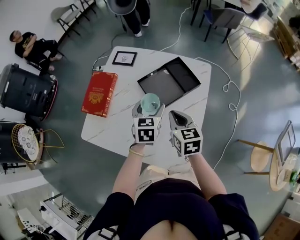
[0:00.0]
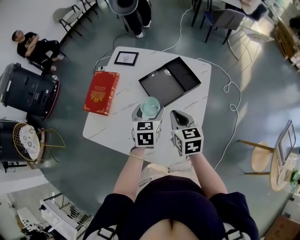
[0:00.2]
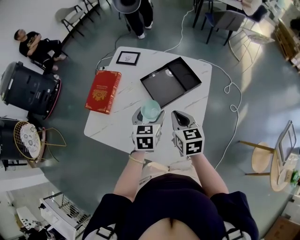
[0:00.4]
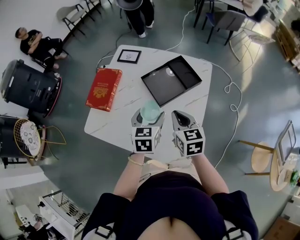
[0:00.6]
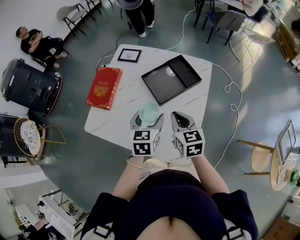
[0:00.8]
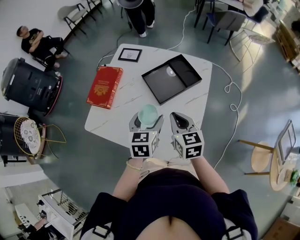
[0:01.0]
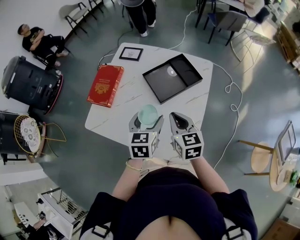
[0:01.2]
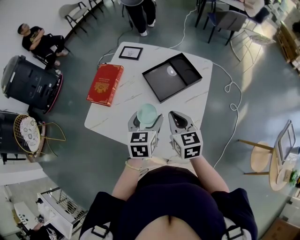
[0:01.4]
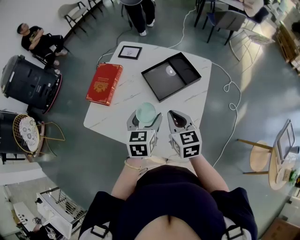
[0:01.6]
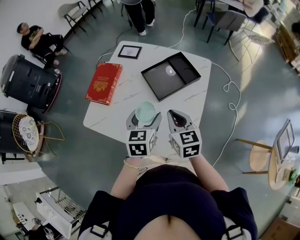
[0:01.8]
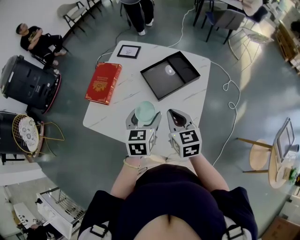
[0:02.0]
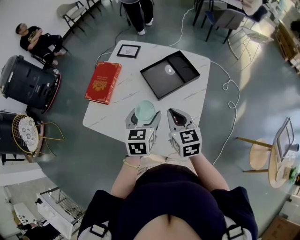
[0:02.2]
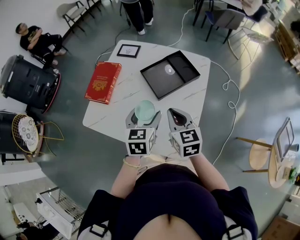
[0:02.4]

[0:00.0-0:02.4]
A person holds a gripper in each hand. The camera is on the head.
0.0 to 1.2 s: The right gripper travels backward by some 5 cm, while the left gripper heads backward, covering some 10 cm.
1.2 to 2.4 s: Both grippers stay about where they are.

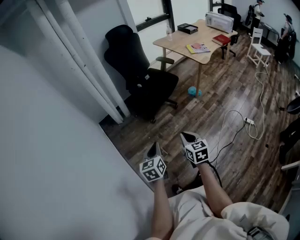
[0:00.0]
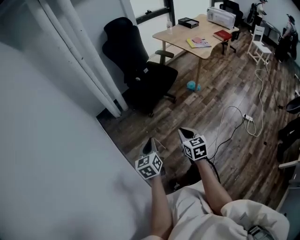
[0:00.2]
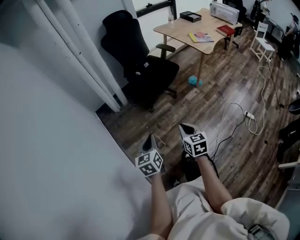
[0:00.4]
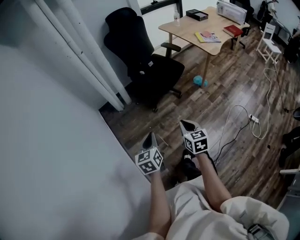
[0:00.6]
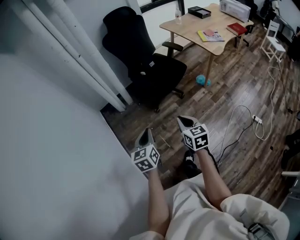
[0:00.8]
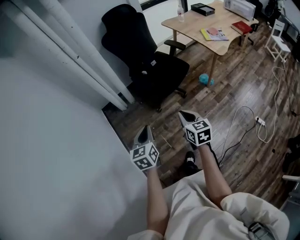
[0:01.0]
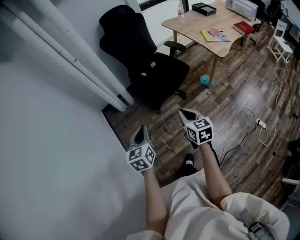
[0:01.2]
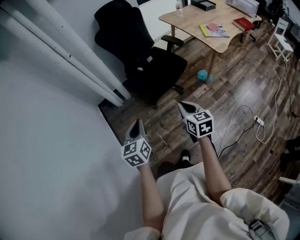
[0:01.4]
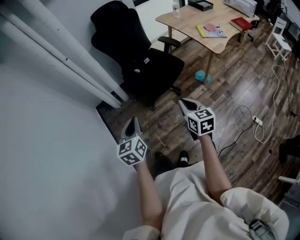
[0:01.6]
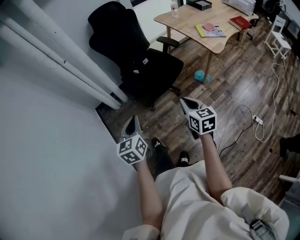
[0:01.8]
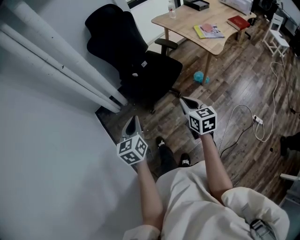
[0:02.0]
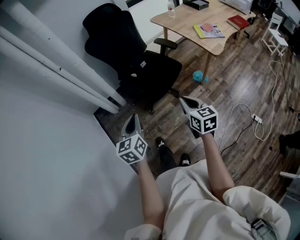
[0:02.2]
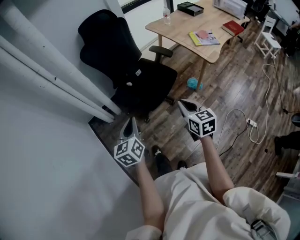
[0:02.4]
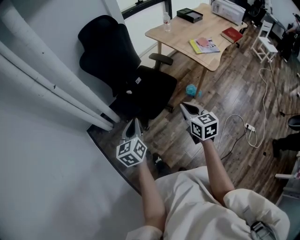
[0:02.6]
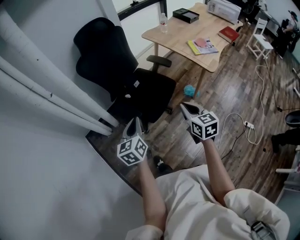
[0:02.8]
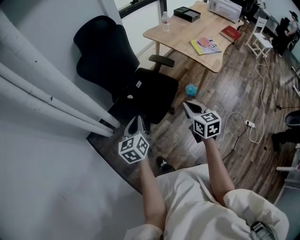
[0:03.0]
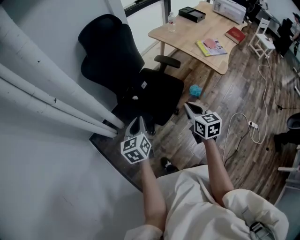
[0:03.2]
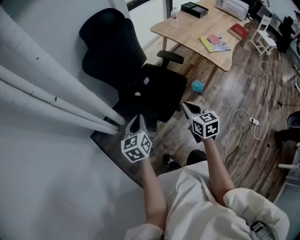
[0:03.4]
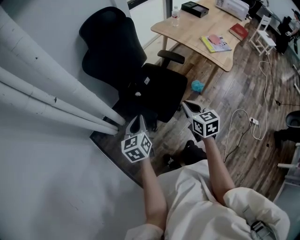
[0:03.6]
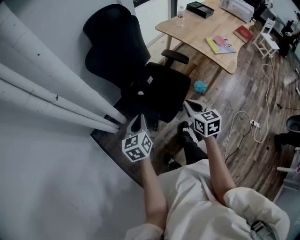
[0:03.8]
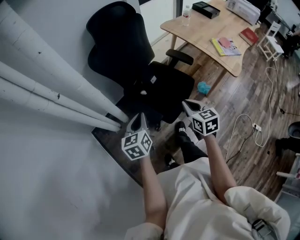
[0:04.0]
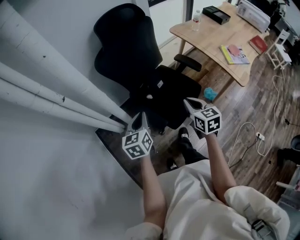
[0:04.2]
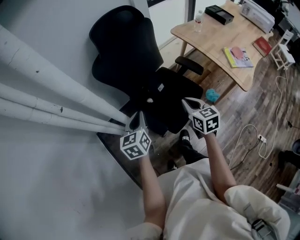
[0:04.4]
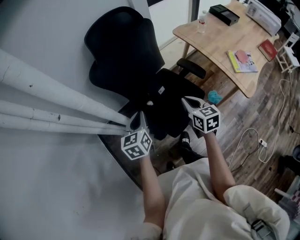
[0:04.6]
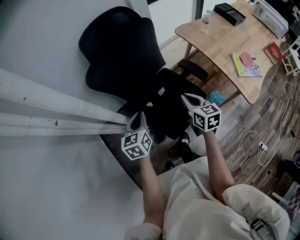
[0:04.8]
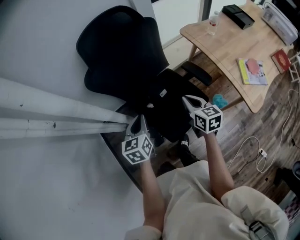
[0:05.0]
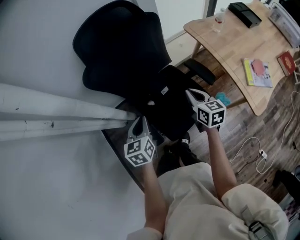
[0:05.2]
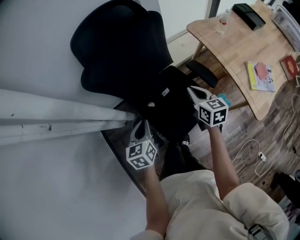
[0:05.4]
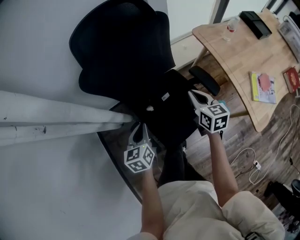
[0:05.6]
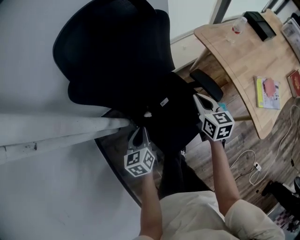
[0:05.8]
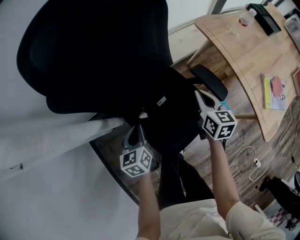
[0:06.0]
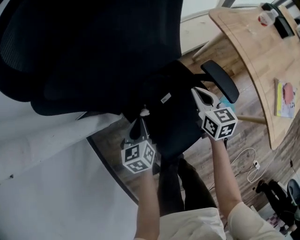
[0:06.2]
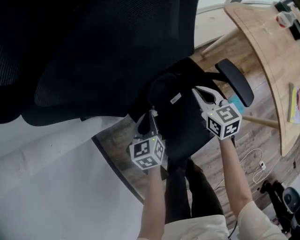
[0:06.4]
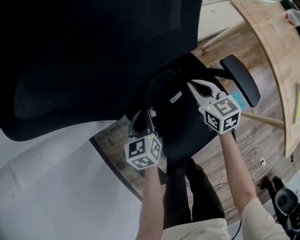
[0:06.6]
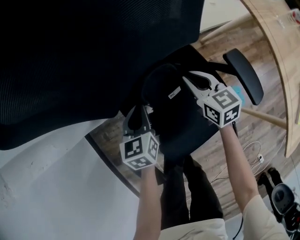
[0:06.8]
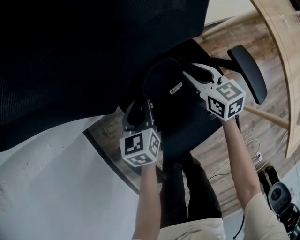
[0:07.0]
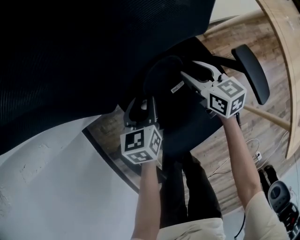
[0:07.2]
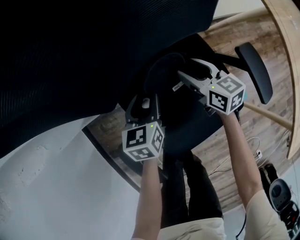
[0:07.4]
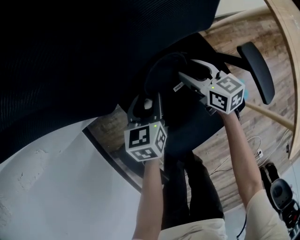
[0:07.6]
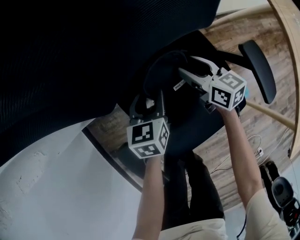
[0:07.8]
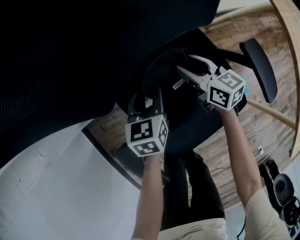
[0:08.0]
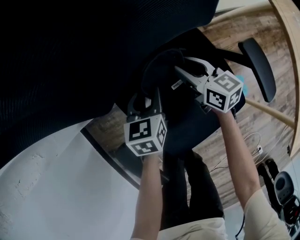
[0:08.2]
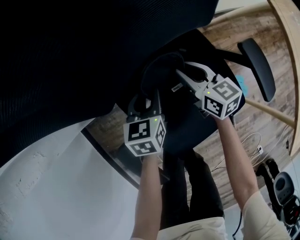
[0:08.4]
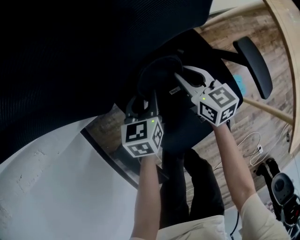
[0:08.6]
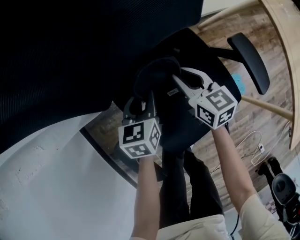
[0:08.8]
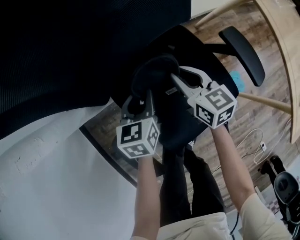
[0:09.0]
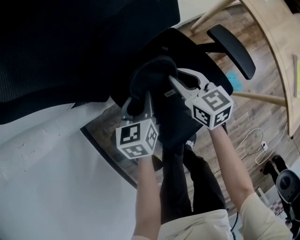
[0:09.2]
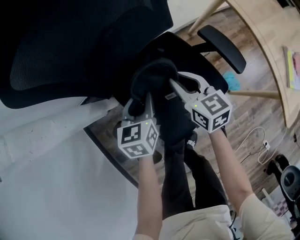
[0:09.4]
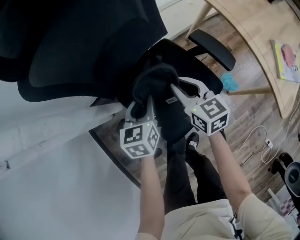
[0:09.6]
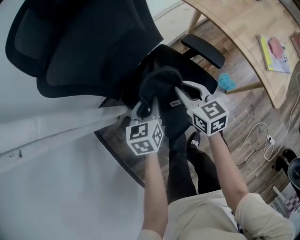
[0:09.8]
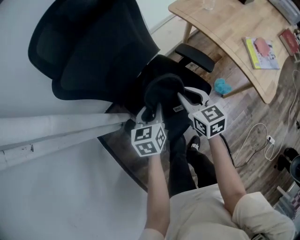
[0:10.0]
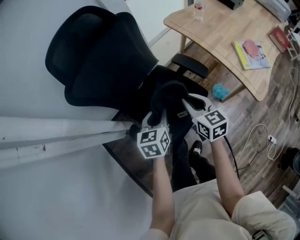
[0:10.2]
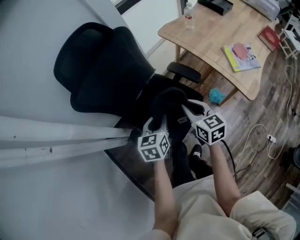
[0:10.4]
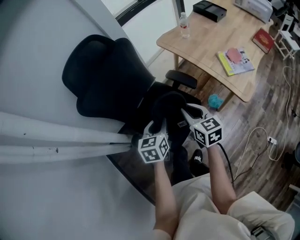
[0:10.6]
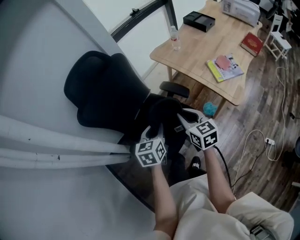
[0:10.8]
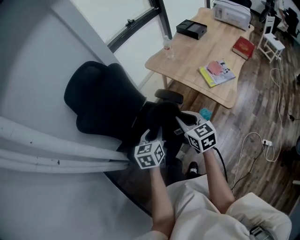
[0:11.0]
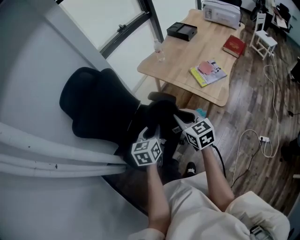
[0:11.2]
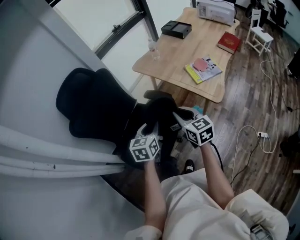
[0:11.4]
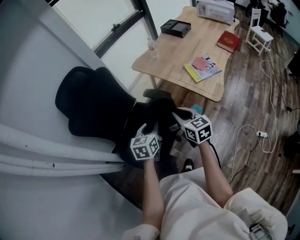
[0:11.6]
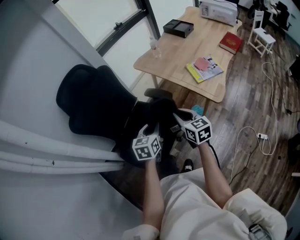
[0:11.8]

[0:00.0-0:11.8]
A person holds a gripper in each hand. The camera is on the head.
0.0 to 1.4 s: The left gripper moves forward, about 25 cm; the right gripper goes some 30 cm forward and to the right.
1.4 to 3.0 s: Both grippers travel together forward, about 25 cm.
3.0 to 4.4 s: Both grippers move forward and to the left, roughly 25 cm.
4.4 to 6.0 s: The right gripper moves forward, downward and to the right, some 35 cm. The left gripper is displaced downward and forward by roughly 30 cm.
6.0 to 7.4 s: The left gripper heads downward and forward, covering roughly 20 cm, and opens, while the right gripper heads downward, to the left and forward, covering roughly 30 cm, swivels roughly 30 degrees, and opens.
7.4 to 8.8 s: The right gripper closes its fingers.
8.8 to 10.4 s: The grippers both shift upward, backward and to the right by roughly 50 cm. The right gripper changes its angle by about 20 degrees; the left gripper rotates roughly 20 degrees.
10.4 to 11.8 s: The right gripper heads to the right, backward and upward, covering about 15 cm. The left gripper is displaced to the right, upward and backward by roughly 15 cm.

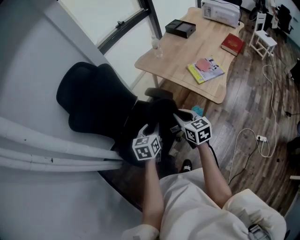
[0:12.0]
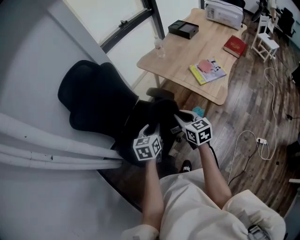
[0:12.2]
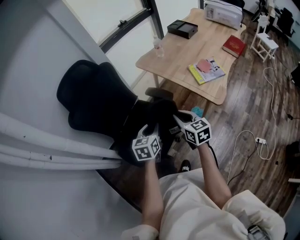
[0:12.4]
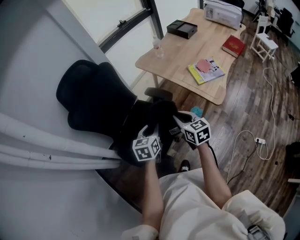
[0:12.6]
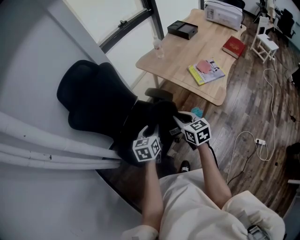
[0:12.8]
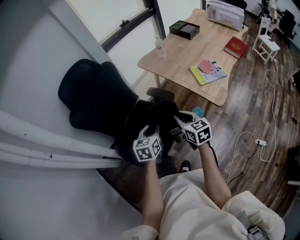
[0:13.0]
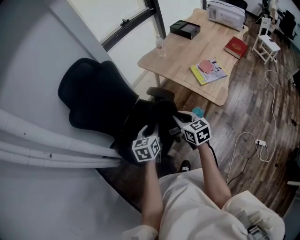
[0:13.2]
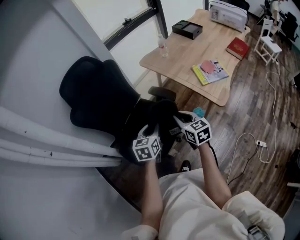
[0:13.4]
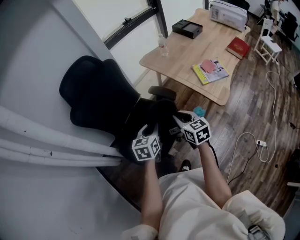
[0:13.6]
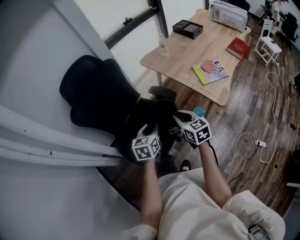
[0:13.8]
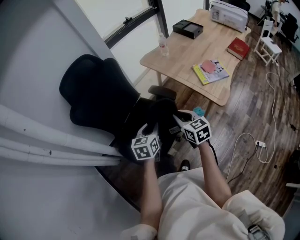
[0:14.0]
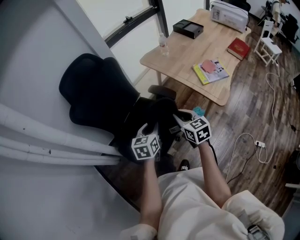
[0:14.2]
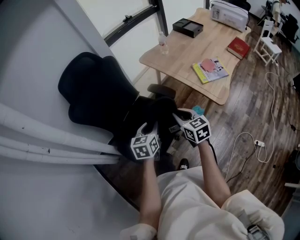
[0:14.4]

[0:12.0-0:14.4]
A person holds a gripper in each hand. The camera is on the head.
12.0 to 13.2 s: The grippers make only small movements.
13.2 to 14.4 s: The two grippers keep their place.

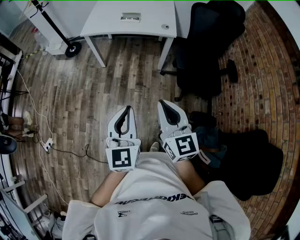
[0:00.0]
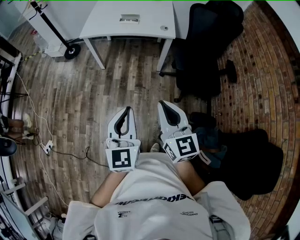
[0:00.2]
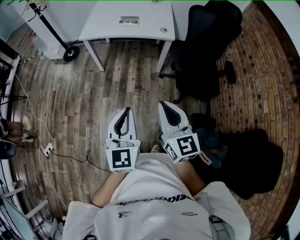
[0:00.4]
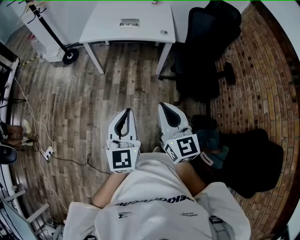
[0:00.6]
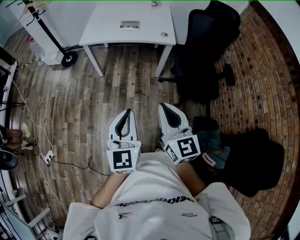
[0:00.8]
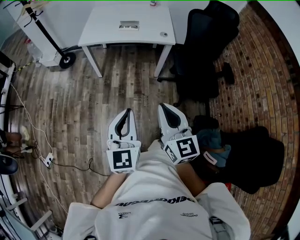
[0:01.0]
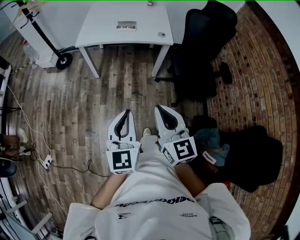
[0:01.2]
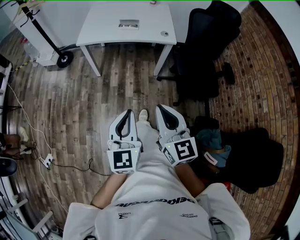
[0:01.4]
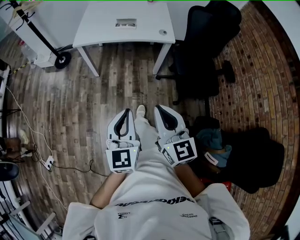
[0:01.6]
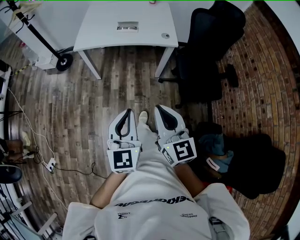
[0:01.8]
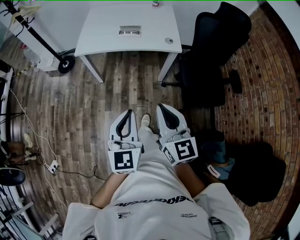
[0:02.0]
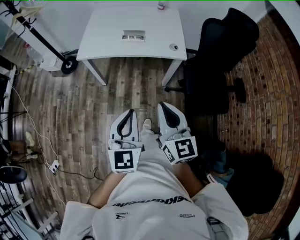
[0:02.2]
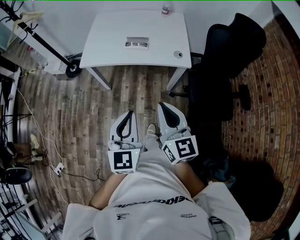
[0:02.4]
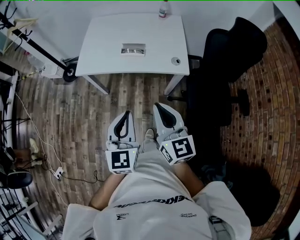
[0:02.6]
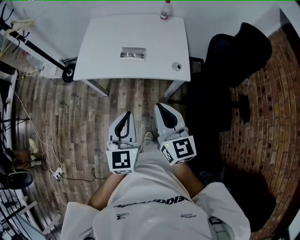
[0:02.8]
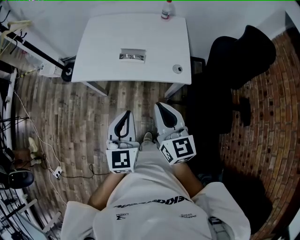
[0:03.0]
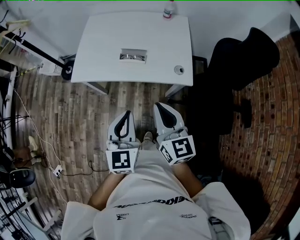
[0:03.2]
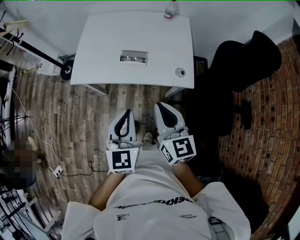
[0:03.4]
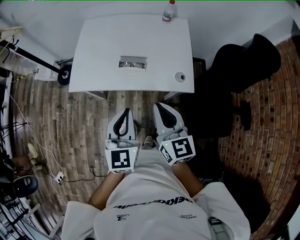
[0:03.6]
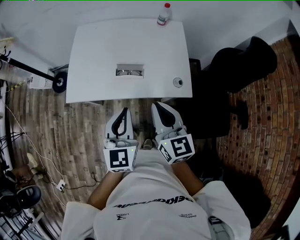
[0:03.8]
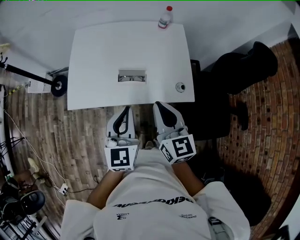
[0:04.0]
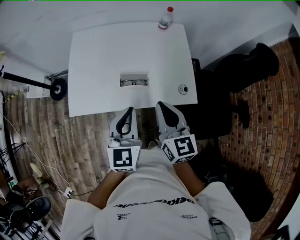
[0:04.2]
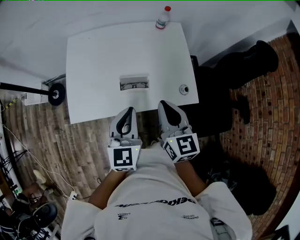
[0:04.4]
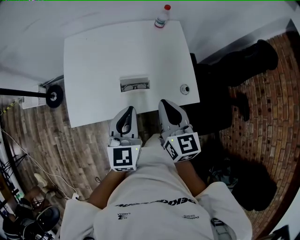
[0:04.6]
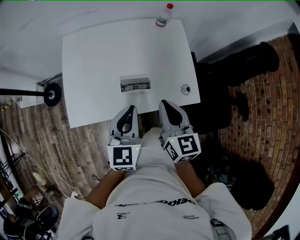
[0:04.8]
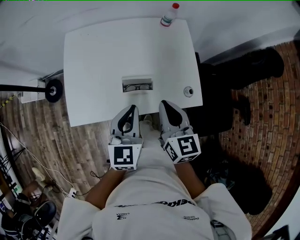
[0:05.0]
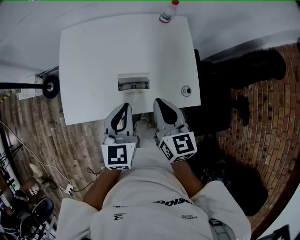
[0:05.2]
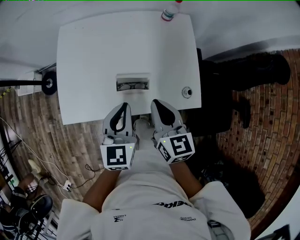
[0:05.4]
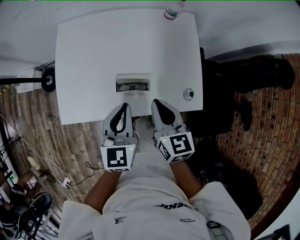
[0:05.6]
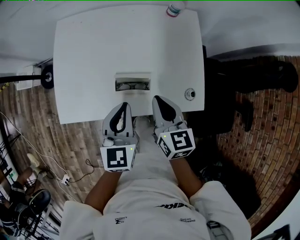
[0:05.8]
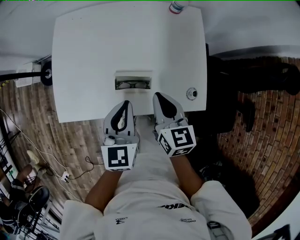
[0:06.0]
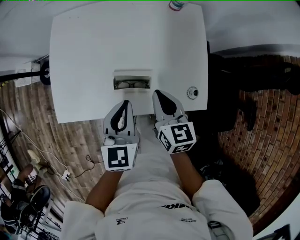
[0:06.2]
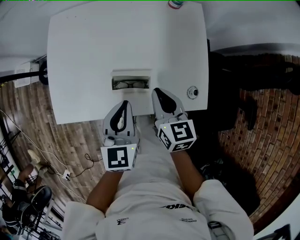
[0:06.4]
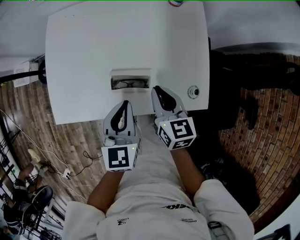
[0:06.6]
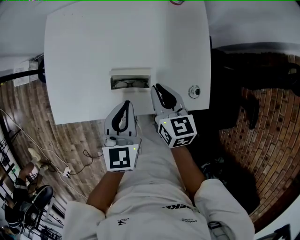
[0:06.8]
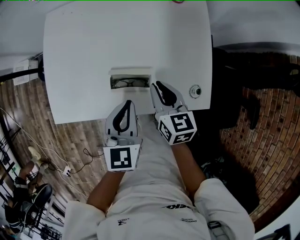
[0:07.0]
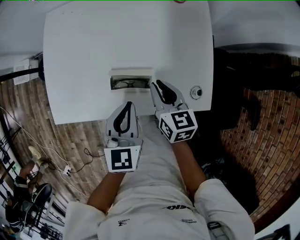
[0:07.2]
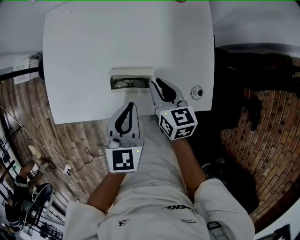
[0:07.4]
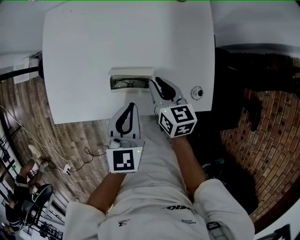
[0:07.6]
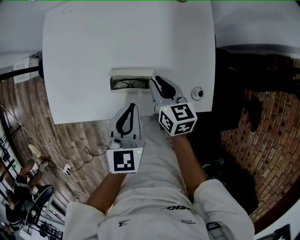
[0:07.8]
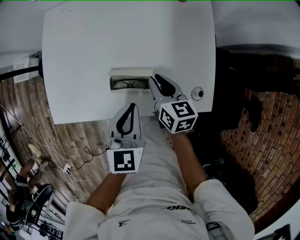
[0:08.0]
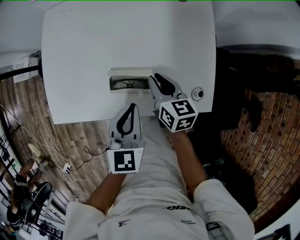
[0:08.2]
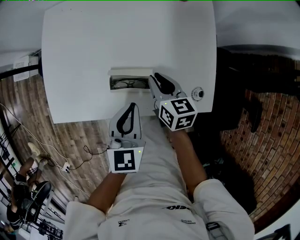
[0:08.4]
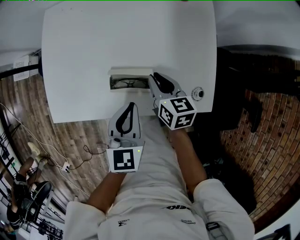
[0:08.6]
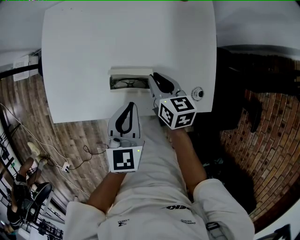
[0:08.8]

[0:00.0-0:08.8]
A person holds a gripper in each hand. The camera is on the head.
0.0 to 1.4 s: Both grippers move to the left and forward, approximately 10 cm.
1.4 to 3.0 s: The two grippers travel together, forward, approximately 40 cm.
3.0 to 4.4 s: Both grippers move forward, roughly 25 cm.
4.4 to 5.8 s: The right gripper moves downward and forward, roughly 15 cm; the left gripper goes approximately 10 cm forward and downward.
5.8 to 7.4 s: The right gripper is displaced downward and forward by approximately 15 cm; the left gripper moves downward, some 5 cm.
7.4 to 8.8 s: There are only small adjustments of the grippers.
